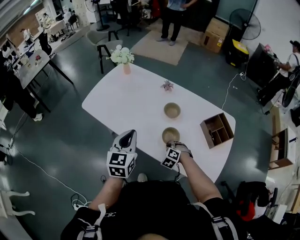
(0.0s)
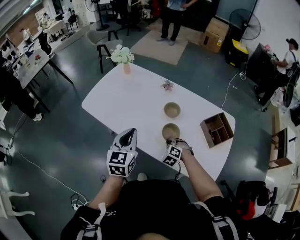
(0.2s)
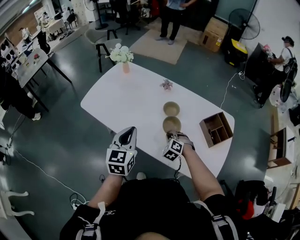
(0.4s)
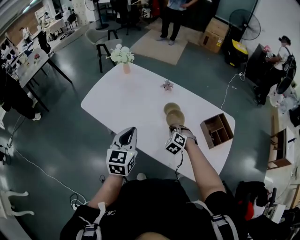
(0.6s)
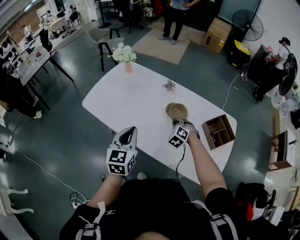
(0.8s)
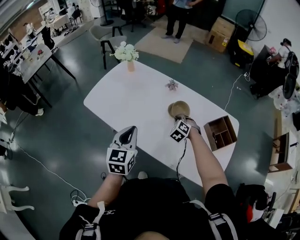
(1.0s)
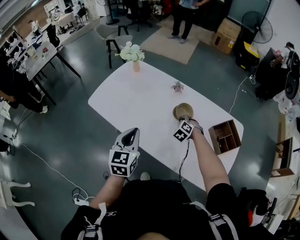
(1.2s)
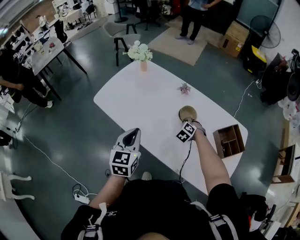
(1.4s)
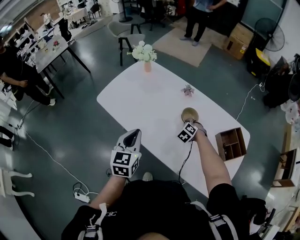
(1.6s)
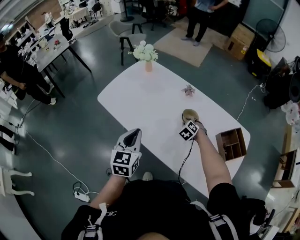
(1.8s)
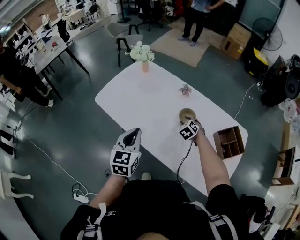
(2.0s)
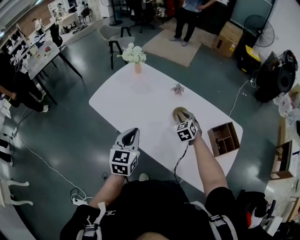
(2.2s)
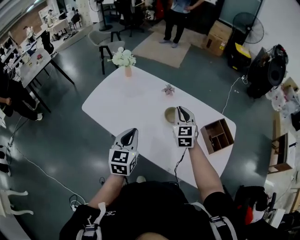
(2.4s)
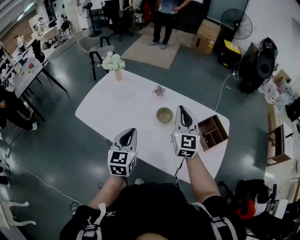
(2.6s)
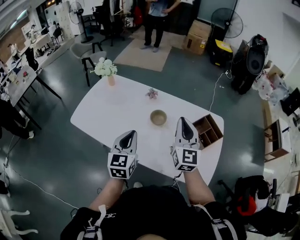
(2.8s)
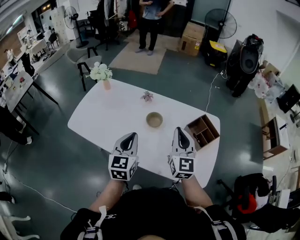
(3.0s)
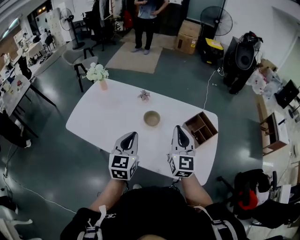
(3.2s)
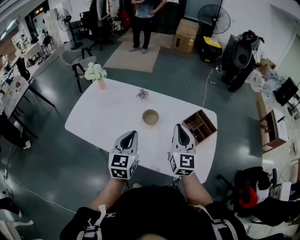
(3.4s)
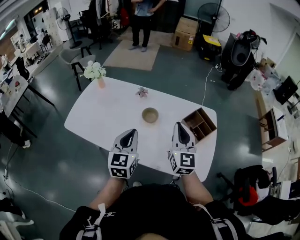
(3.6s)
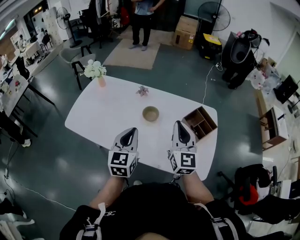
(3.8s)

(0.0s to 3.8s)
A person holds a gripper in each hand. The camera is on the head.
0.0s - 1.2s: The right gripper is displaced forward by roughly 20 cm.
1.2s - 2.6s: The right gripper travels upward by roughly 30 cm, angles its fingers upward, by approximately 50 degrees, and opens, then closes once more; the left gripper moves to the right, roughly 5 cm.
2.6s - 3.8s: The right gripper travels backward and to the right by about 10 cm, while the left gripper shifts some 5 cm to the right.

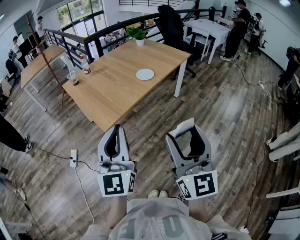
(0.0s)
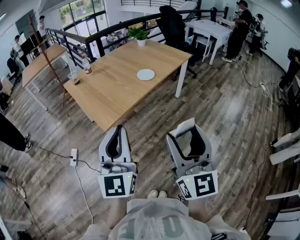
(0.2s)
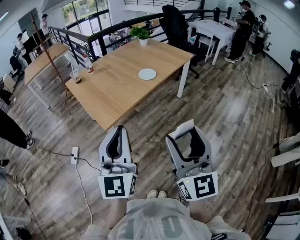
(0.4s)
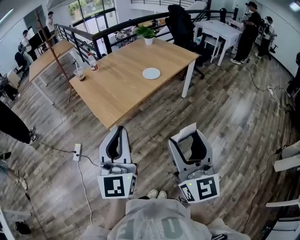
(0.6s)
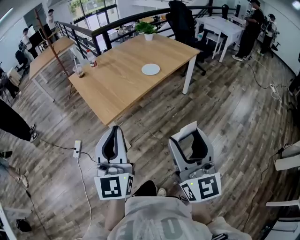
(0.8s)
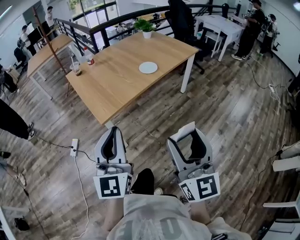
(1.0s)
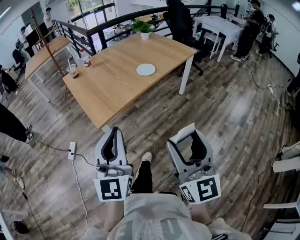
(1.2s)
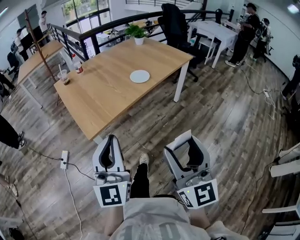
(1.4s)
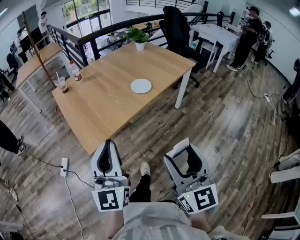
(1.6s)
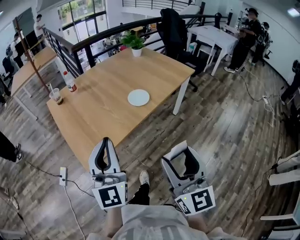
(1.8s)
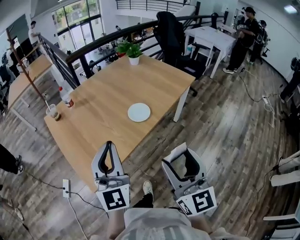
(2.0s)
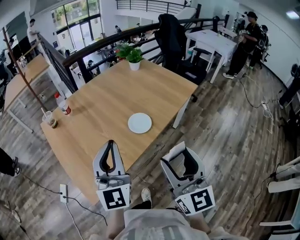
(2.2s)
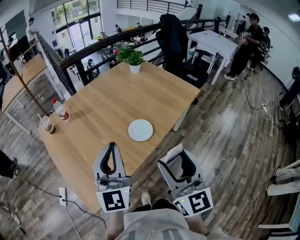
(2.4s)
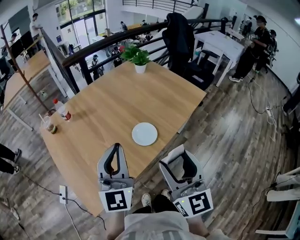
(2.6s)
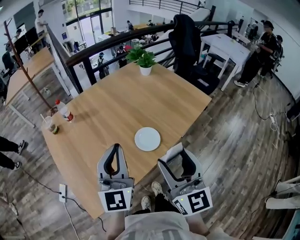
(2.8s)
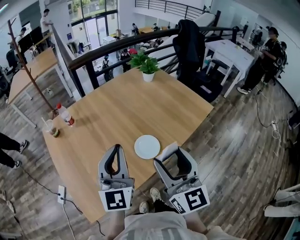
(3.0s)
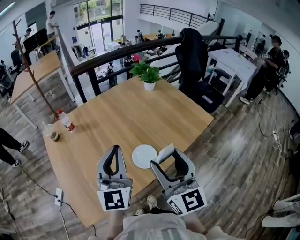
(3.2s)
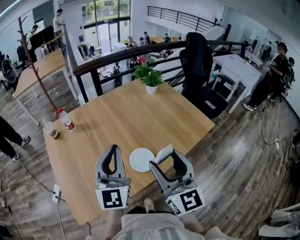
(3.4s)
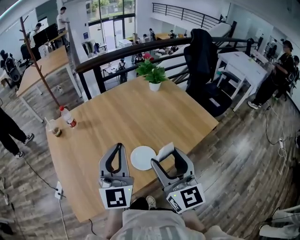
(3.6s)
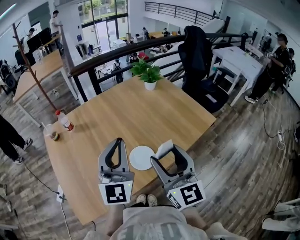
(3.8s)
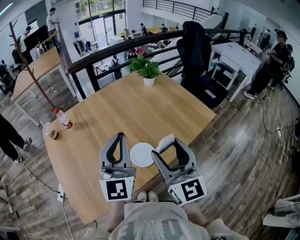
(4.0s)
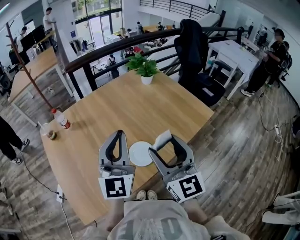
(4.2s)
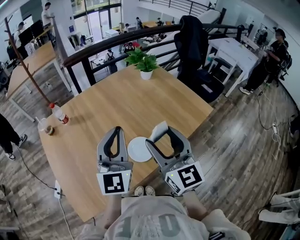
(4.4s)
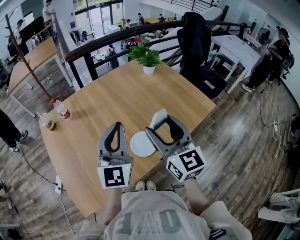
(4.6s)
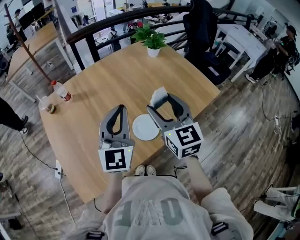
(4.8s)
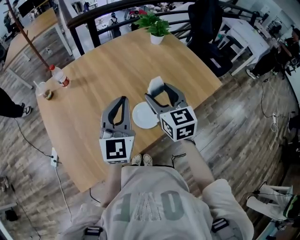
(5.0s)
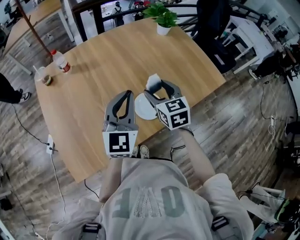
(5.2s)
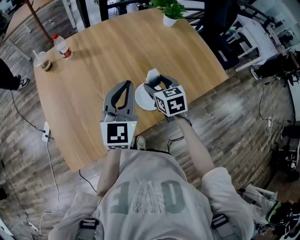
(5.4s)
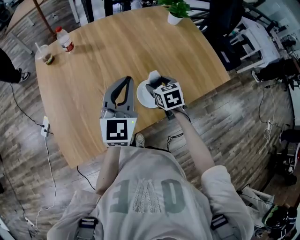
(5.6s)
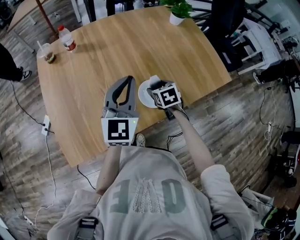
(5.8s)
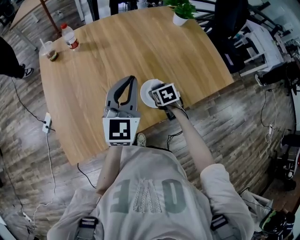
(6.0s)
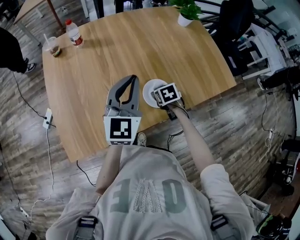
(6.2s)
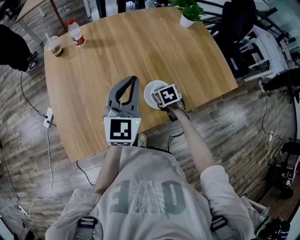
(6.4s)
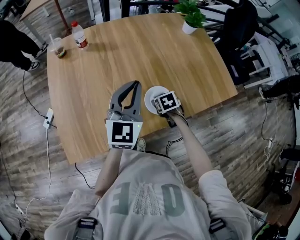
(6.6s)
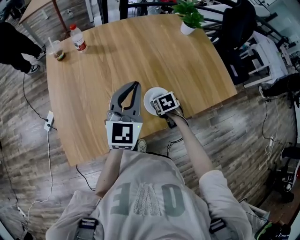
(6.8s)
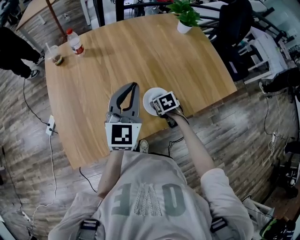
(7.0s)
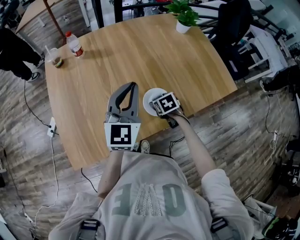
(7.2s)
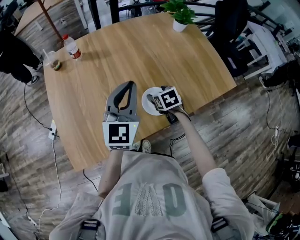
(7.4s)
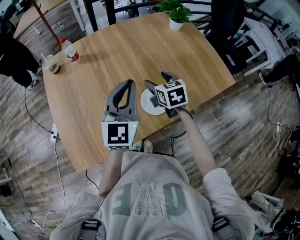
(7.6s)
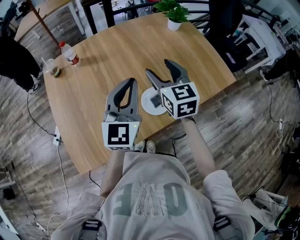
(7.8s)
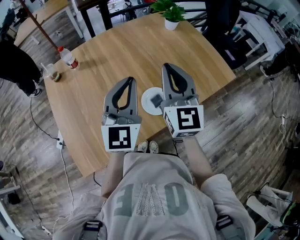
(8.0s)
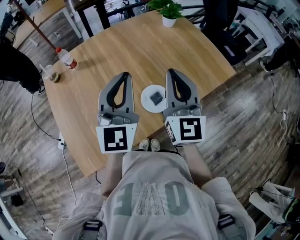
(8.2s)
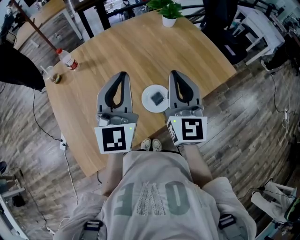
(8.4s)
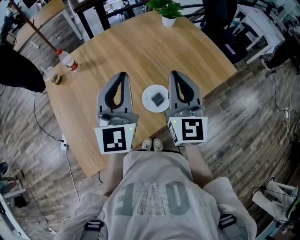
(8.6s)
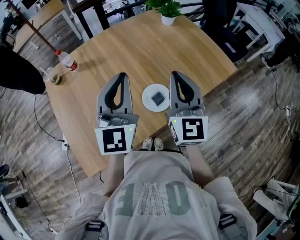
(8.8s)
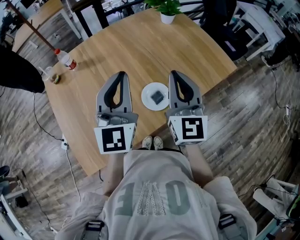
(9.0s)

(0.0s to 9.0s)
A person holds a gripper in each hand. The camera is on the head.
0.0s - 1.6s: The right gripper shifts some 15 cm forward, downward and to the right. The left gripper is displaced forward and downward by some 15 cm.
1.6s - 3.0s: The two grippers travel together, forward, some 40 cm.
3.0s - 4.4s: The left gripper moves forward and to the right, approximately 10 cm, while the right gripper goes some 10 cm forward.
4.4s - 6.0s: The left gripper shifts about 10 cm downward. Meanwhile the right gripper heads downward, covering some 35 cm, and tips its fingers downward by approximately 60 degrees.
6.0s - 7.6s: The right gripper is displaced upward and forward by about 15 cm, and swivels about 20 degrees.
7.6s - 9.0s: The right gripper heads upward and backward, covering roughly 20 cm, tilts its fingers some 40 degrees upward, and closes up; the left gripper heads upward, covering roughly 5 cm.

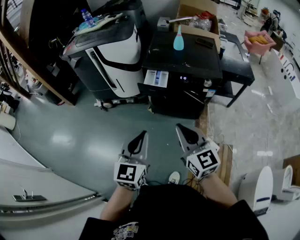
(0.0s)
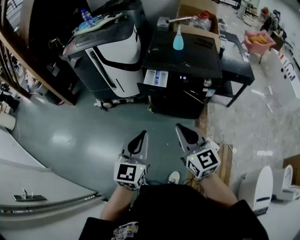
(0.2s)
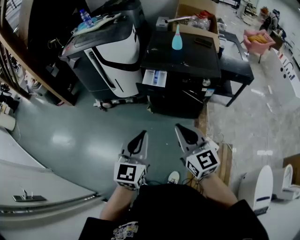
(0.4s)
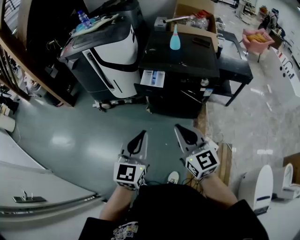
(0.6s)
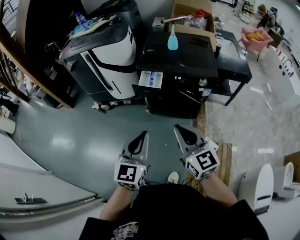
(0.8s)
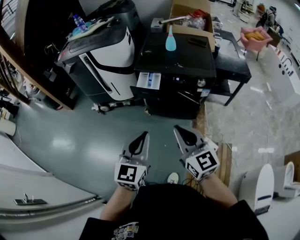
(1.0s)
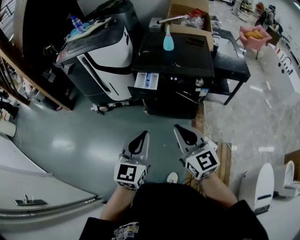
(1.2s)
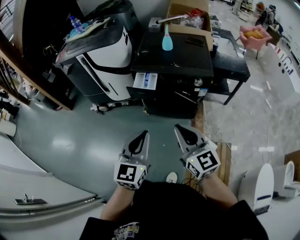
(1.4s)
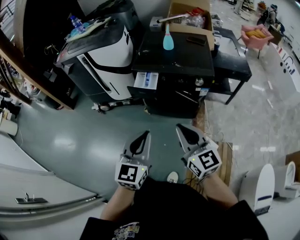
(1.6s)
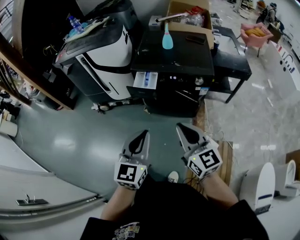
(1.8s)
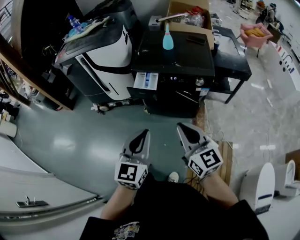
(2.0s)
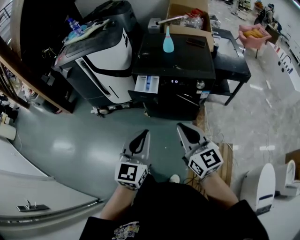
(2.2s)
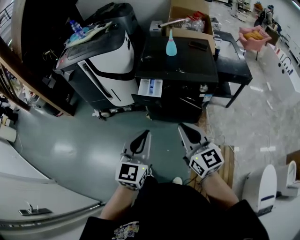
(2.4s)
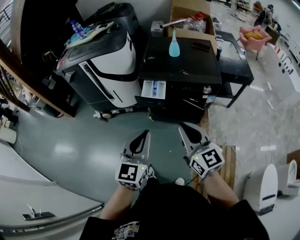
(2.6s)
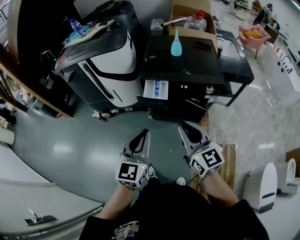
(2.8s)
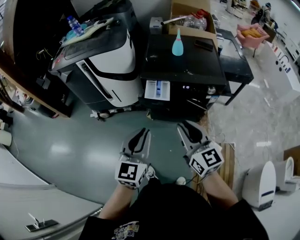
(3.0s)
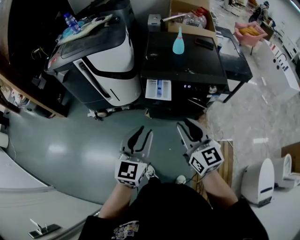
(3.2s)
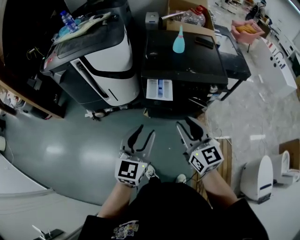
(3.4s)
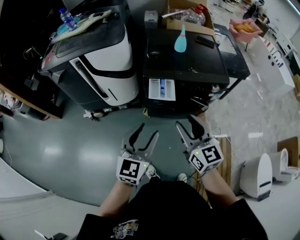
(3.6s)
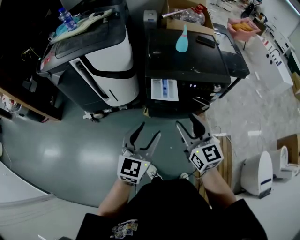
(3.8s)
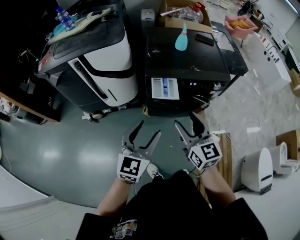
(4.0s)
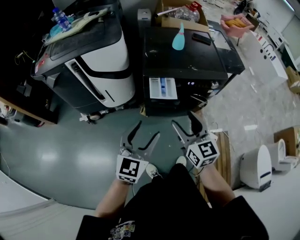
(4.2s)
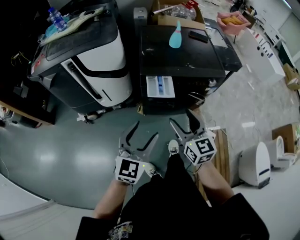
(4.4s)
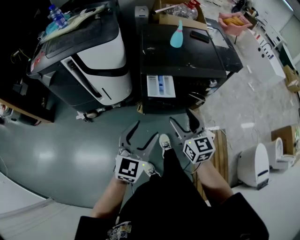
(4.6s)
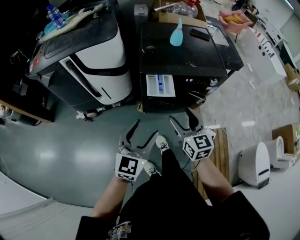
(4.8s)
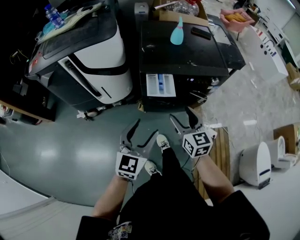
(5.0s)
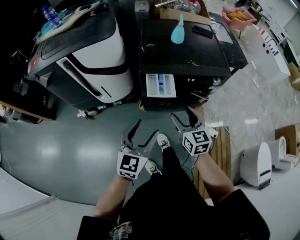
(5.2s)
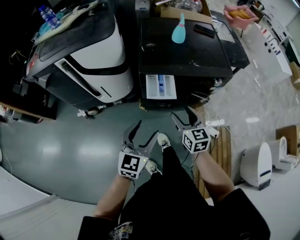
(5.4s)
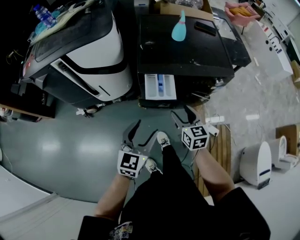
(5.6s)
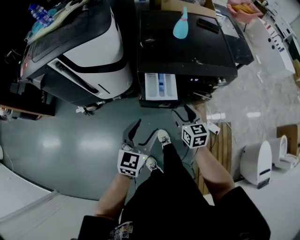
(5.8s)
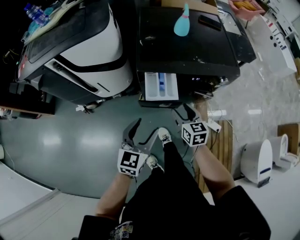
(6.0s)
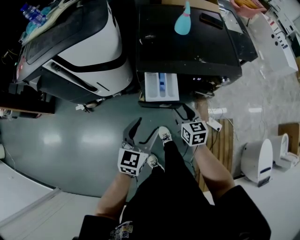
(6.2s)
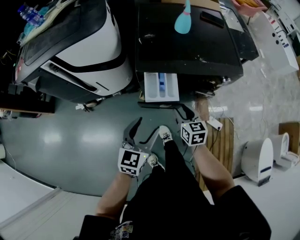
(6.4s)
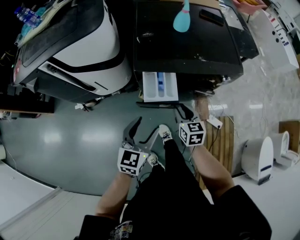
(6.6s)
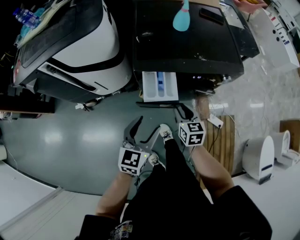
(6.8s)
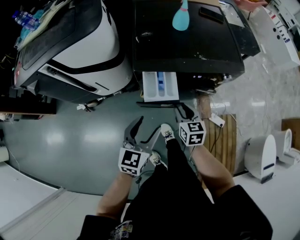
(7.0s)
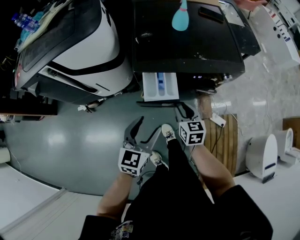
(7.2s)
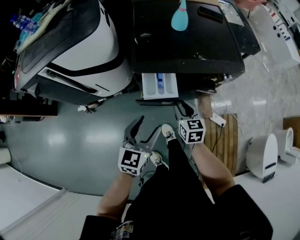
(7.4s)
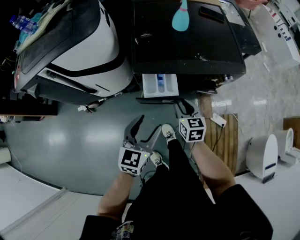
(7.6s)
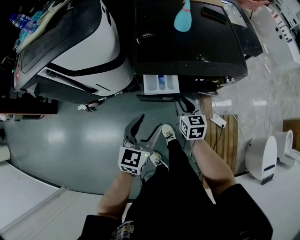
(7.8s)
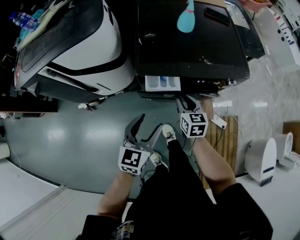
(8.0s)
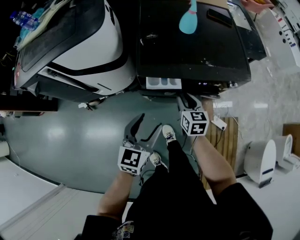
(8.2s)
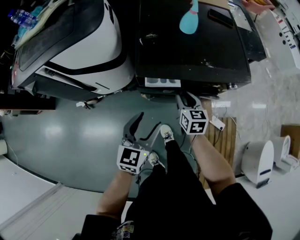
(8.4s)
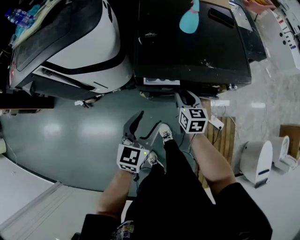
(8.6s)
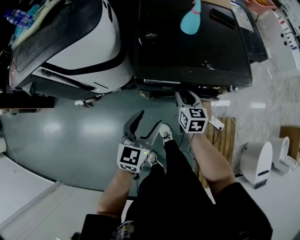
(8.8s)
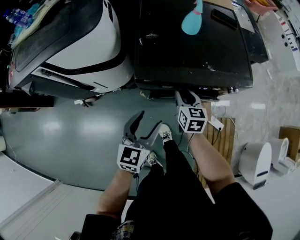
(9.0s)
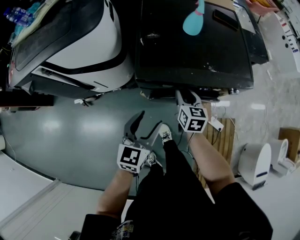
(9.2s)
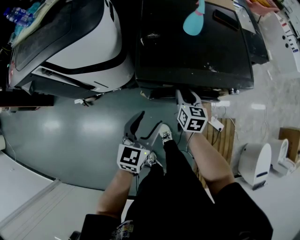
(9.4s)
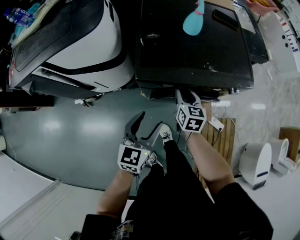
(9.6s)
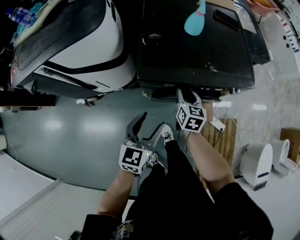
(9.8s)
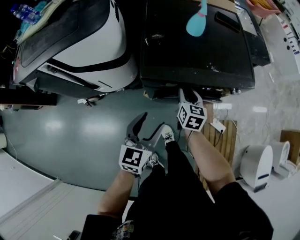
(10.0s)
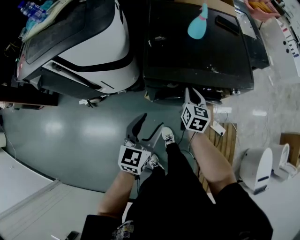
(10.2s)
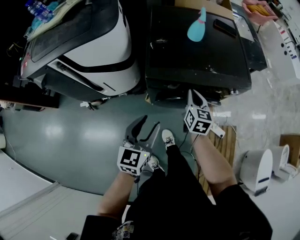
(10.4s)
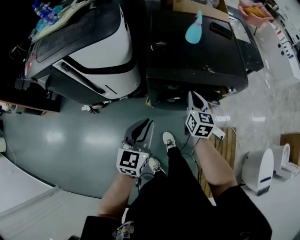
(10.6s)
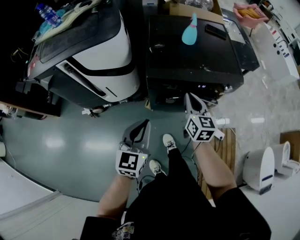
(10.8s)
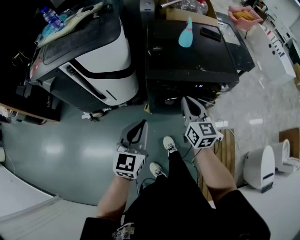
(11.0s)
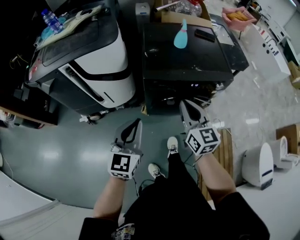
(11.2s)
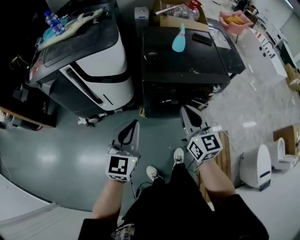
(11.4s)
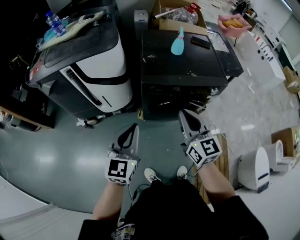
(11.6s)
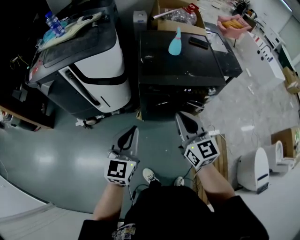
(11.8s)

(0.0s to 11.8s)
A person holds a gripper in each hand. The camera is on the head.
0.0s - 1.4s: The two grippers go roughly 10 cm to the right.
1.4s - 3.0s: The two grippers go some 15 cm forward and to the left.
3.0s - 4.4s: The two grippers go about 15 cm to the left, forward and downward. The left gripper opens up. The right gripper opens up.
4.4s - 6.0s: The two grippers go about 20 cm downward and forward. The right gripper changes its angle by about 20 degrees.
6.0s - 7.4s: The right gripper closes its fingers.
7.4s - 8.8s: The left gripper travels forward by about 5 cm. Meanwhile the right gripper goes roughly 10 cm forward.
8.8s - 10.4s: The right gripper goes some 5 cm upward, and closes its fingers; the left gripper moves some 5 cm.
10.4s - 11.8s: The left gripper shifts some 15 cm backward and upward, and closes its fingers, while the right gripper is displaced backward and upward by approximately 30 cm, and turns by some 30 degrees.
